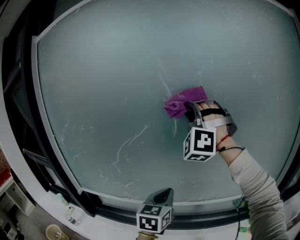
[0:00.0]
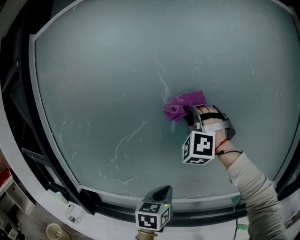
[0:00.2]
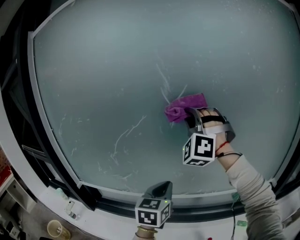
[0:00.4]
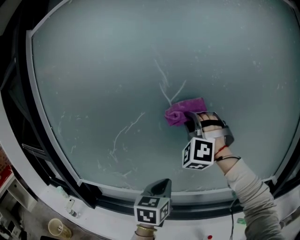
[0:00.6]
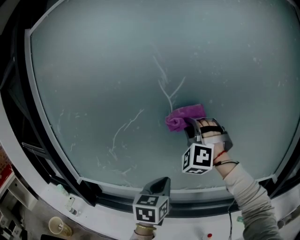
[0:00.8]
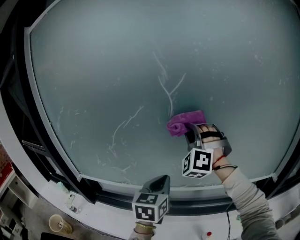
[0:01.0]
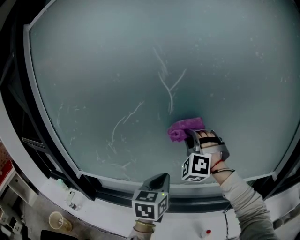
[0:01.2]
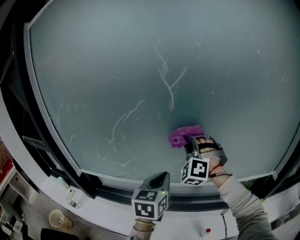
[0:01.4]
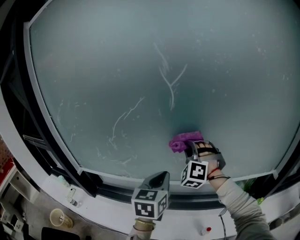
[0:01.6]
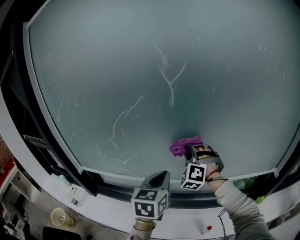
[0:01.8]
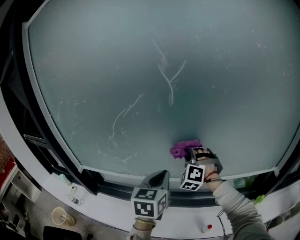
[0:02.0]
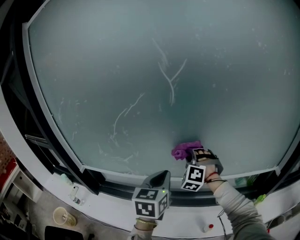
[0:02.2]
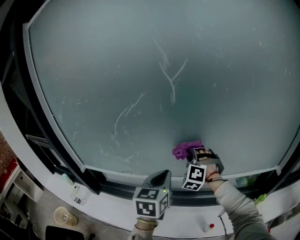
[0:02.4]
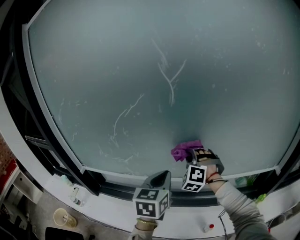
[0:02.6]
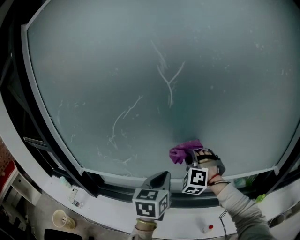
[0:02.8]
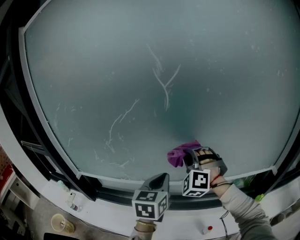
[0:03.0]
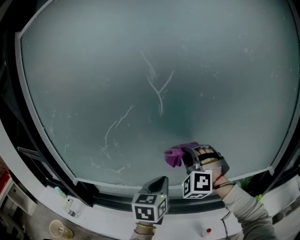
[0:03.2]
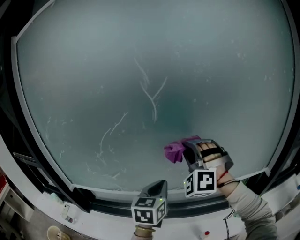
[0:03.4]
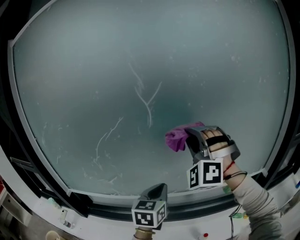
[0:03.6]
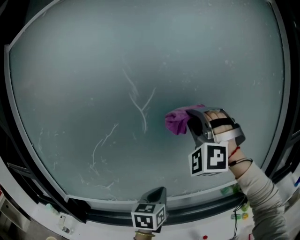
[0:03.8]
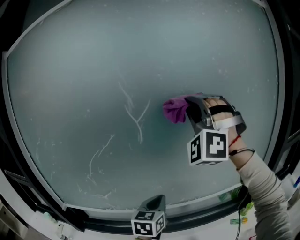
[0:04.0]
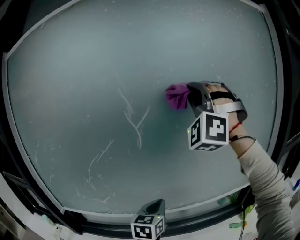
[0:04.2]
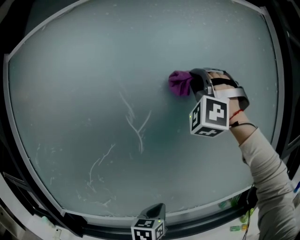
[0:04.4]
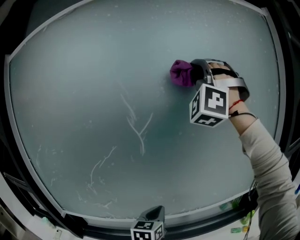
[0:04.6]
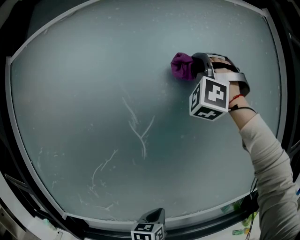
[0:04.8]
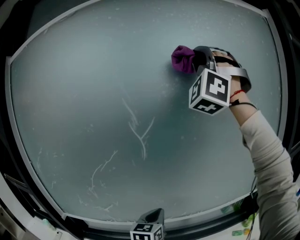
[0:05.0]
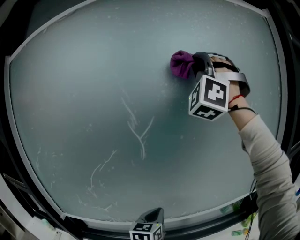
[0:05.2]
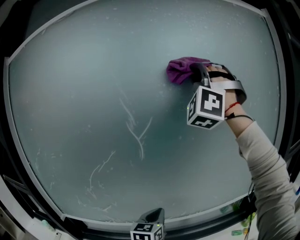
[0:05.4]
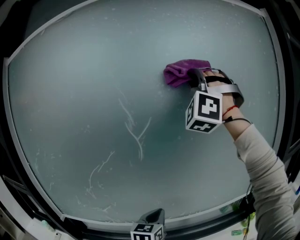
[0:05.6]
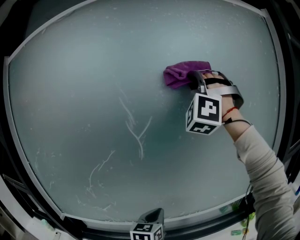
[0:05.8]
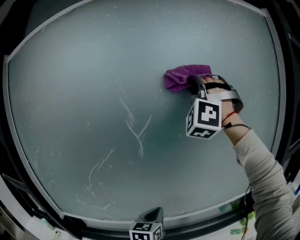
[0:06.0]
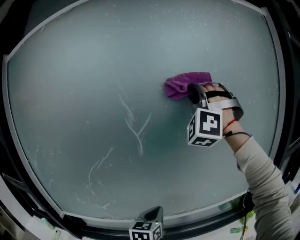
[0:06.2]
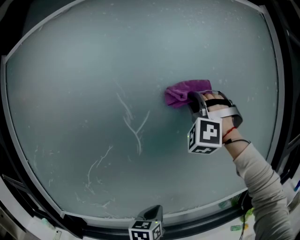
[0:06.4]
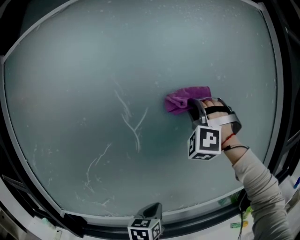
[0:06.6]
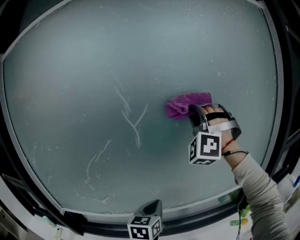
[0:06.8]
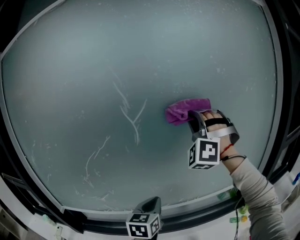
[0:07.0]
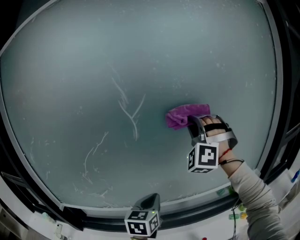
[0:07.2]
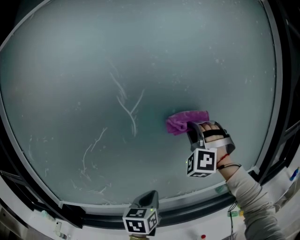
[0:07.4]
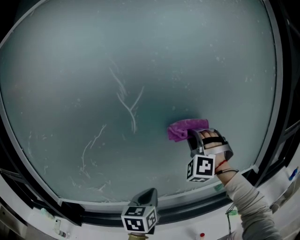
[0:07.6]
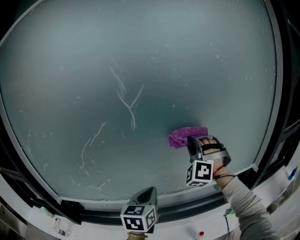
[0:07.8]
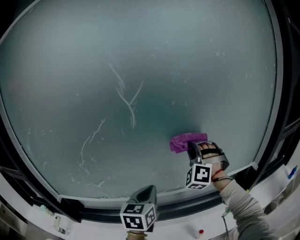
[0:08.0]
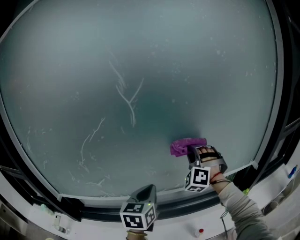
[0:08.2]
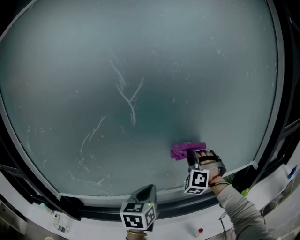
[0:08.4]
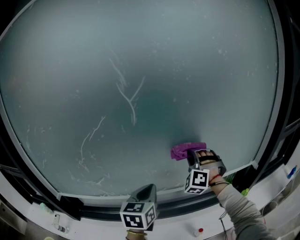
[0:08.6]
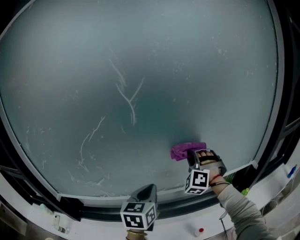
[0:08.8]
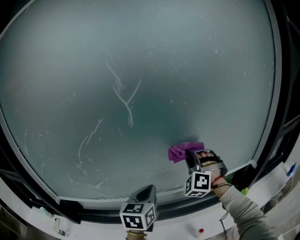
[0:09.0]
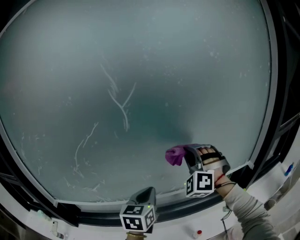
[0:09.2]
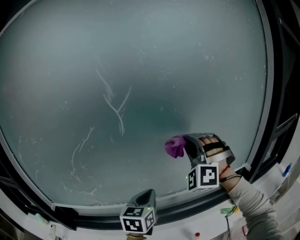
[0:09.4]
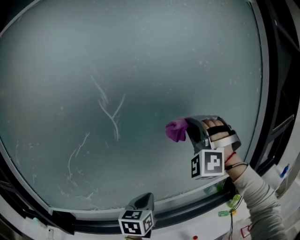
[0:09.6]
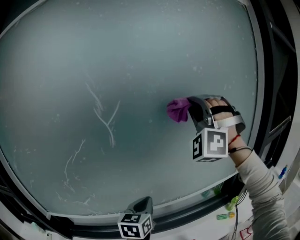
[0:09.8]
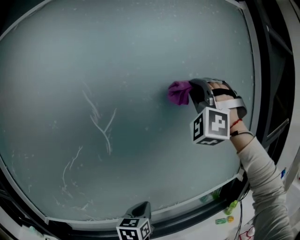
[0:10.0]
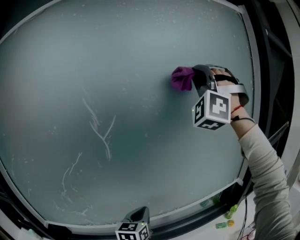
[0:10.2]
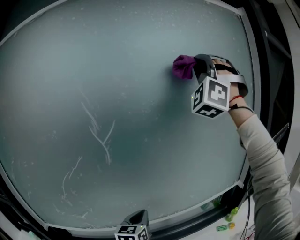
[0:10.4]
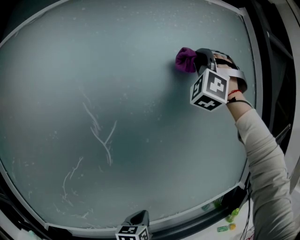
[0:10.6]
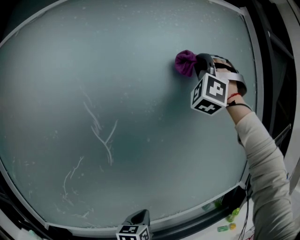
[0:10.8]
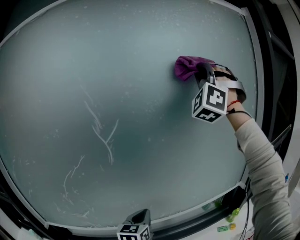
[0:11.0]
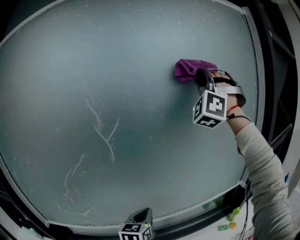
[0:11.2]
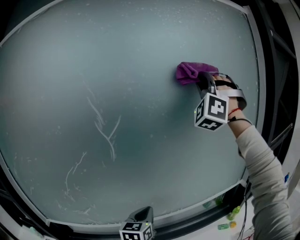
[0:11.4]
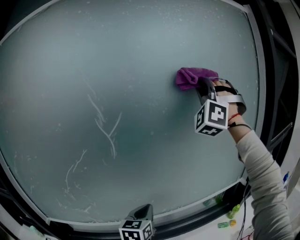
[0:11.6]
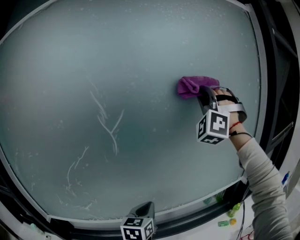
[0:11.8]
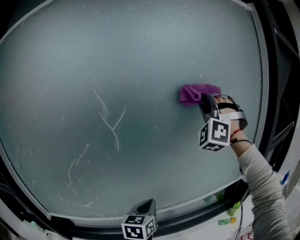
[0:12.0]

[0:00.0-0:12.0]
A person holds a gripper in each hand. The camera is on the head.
0:00.0 to 0:01.6: The right gripper moves downward, some 30 cm, and changes its angle by some 30 degrees.
0:01.6 to 0:03.0: The right gripper travels downward and back again, about 10 cm each way.
0:03.0 to 0:04.4: The left gripper shifts about 5 cm to the right, while the right gripper moves upward, roughly 40 cm, and tips its fingers upward by approximately 40 degrees.
0:04.4 to 0:06.0: The right gripper goes upward and returns, about 10 cm each way.
0:06.0 to 0:07.6: The right gripper is displaced downward by roughly 30 cm, and rotates about 20 degrees.
0:07.6 to 0:09.0: The right gripper is displaced downward by some 10 cm.
0:09.0 to 0:10.4: The left gripper shifts by about 5 cm, while the right gripper travels upward by some 50 cm, and points its fingers approximately 40 degrees further upward.
0:10.4 to 0:12.0: The right gripper goes approximately 15 cm downward.

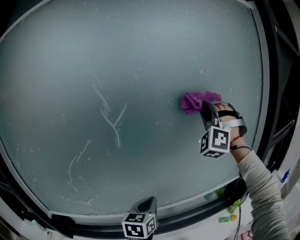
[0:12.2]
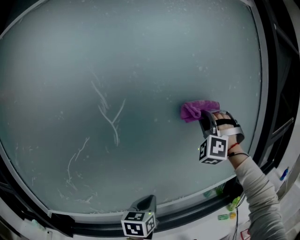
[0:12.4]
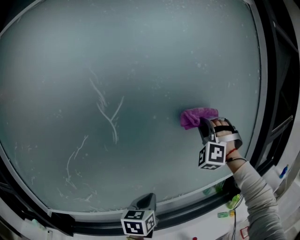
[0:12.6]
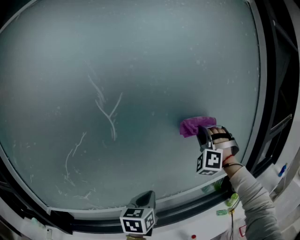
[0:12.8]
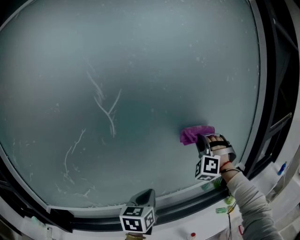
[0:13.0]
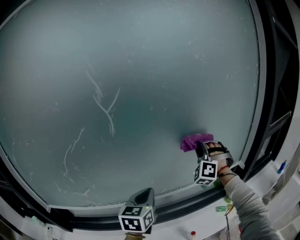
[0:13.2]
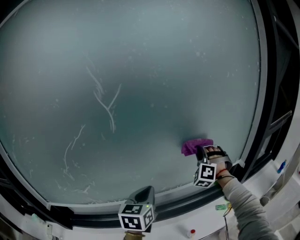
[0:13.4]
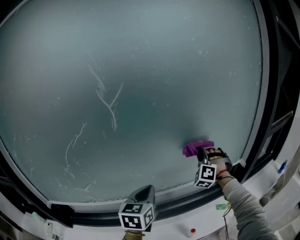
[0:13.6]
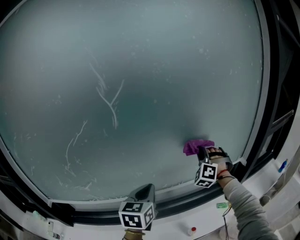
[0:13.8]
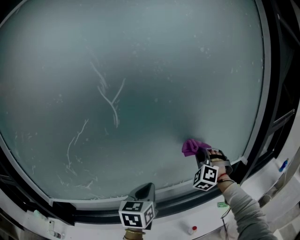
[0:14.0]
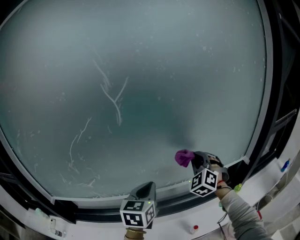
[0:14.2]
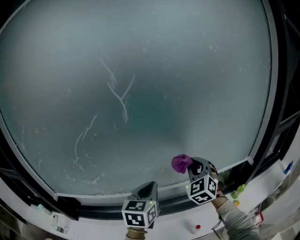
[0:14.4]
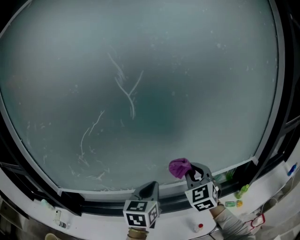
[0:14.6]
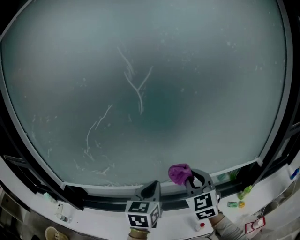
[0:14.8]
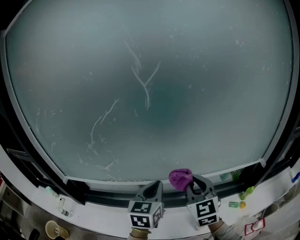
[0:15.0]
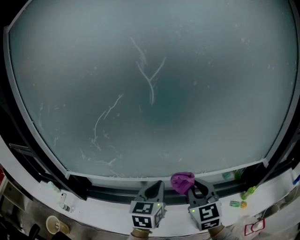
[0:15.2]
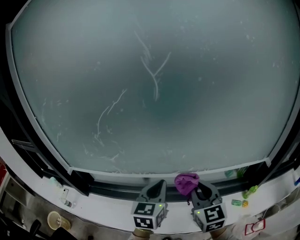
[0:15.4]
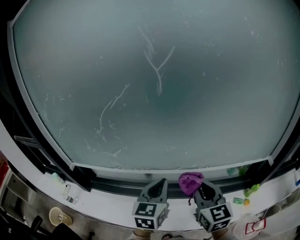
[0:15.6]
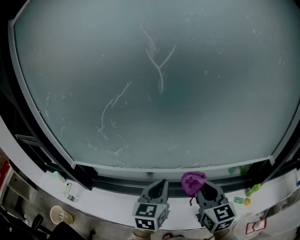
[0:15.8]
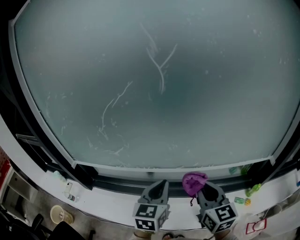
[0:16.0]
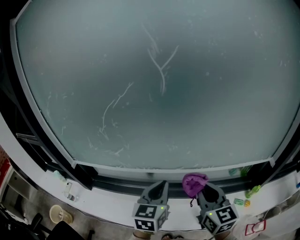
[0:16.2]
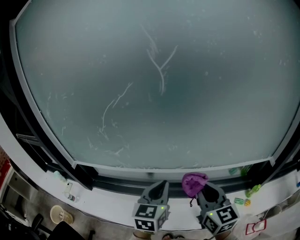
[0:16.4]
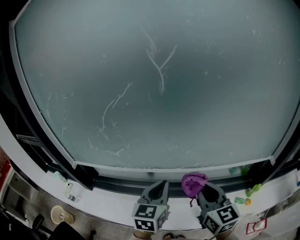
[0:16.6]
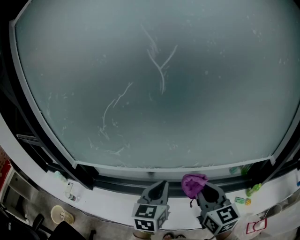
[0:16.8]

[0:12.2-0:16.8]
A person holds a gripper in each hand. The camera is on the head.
0:12.2 to 0:13.8: The right gripper is displaced downward by roughly 30 cm, and turns by approximately 30 degrees.
0:13.8 to 0:15.2: The left gripper is displaced to the left and backward by some 10 cm. The right gripper is displaced backward and to the left by approximately 25 cm, and twists about 60 degrees clockwise, seen from behind.
0:15.2 to 0:16.8: The right gripper turns by roughly 20 degrees.

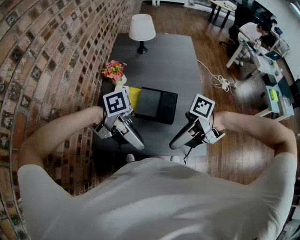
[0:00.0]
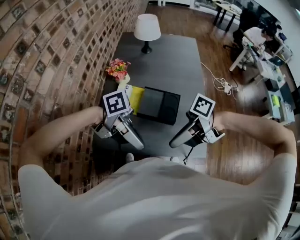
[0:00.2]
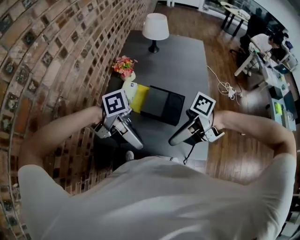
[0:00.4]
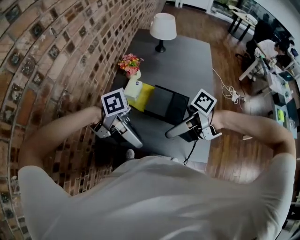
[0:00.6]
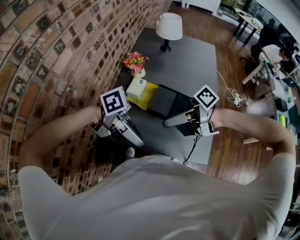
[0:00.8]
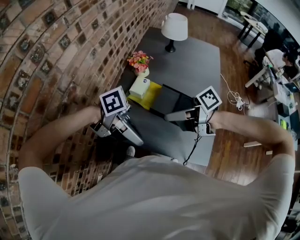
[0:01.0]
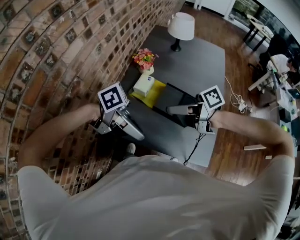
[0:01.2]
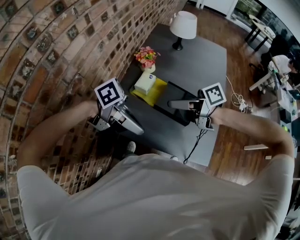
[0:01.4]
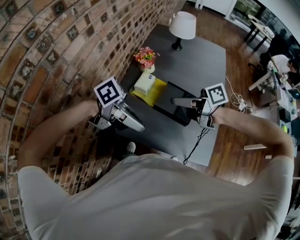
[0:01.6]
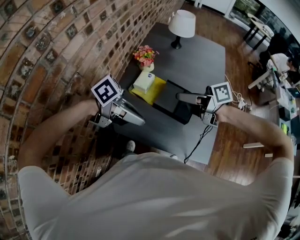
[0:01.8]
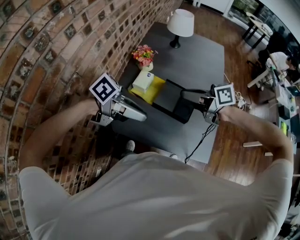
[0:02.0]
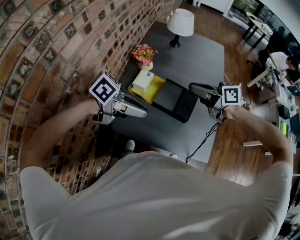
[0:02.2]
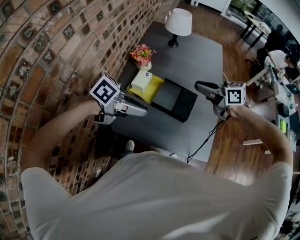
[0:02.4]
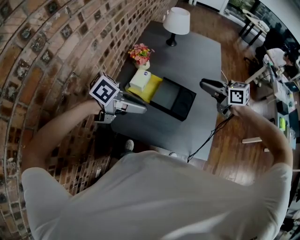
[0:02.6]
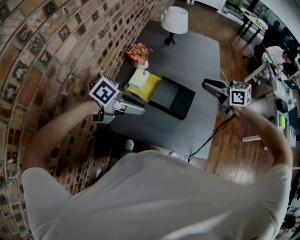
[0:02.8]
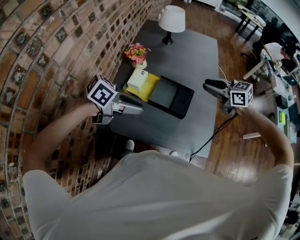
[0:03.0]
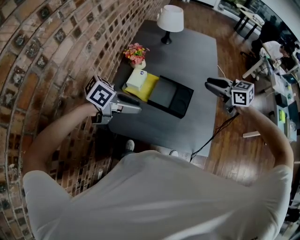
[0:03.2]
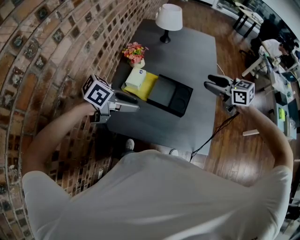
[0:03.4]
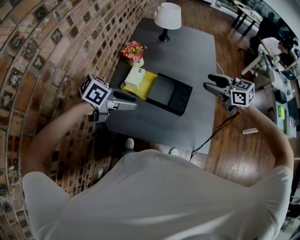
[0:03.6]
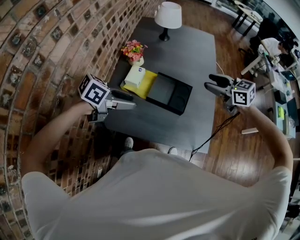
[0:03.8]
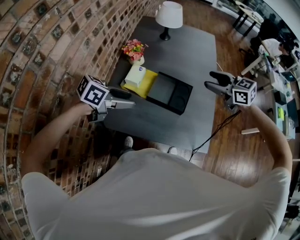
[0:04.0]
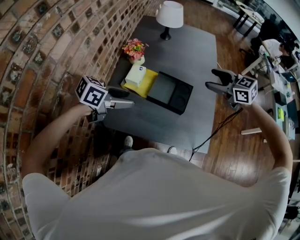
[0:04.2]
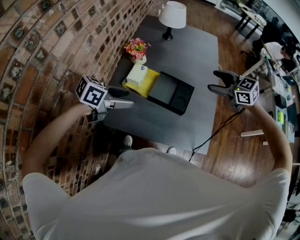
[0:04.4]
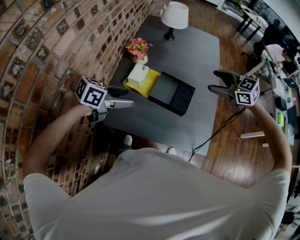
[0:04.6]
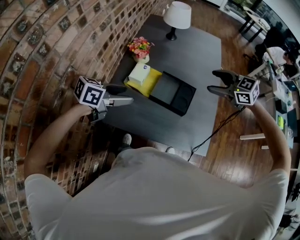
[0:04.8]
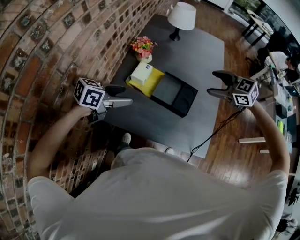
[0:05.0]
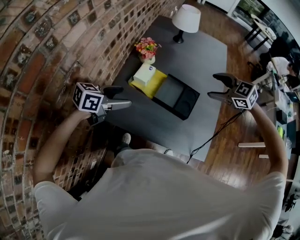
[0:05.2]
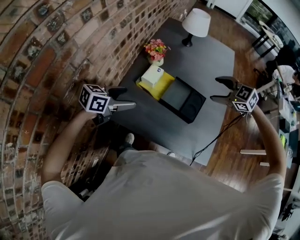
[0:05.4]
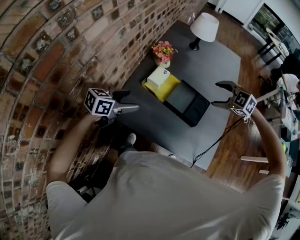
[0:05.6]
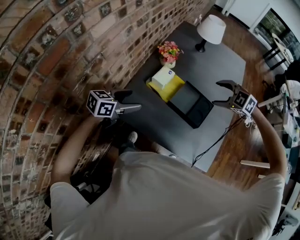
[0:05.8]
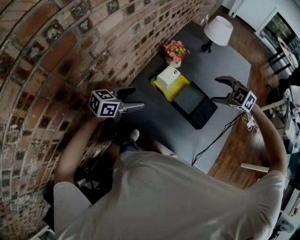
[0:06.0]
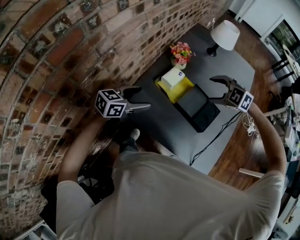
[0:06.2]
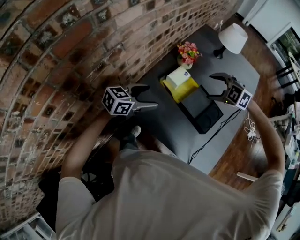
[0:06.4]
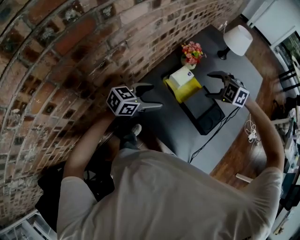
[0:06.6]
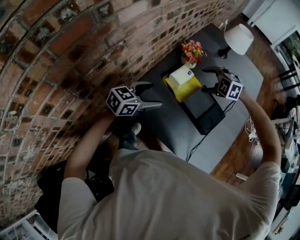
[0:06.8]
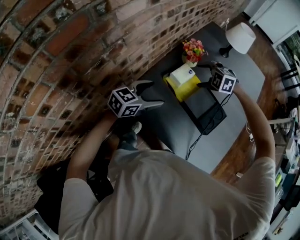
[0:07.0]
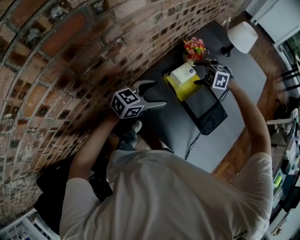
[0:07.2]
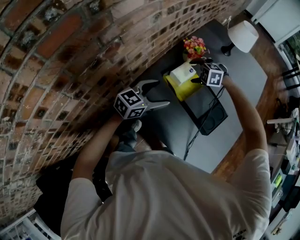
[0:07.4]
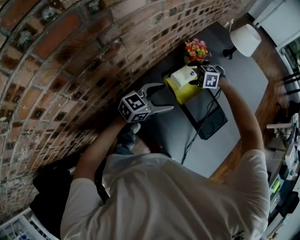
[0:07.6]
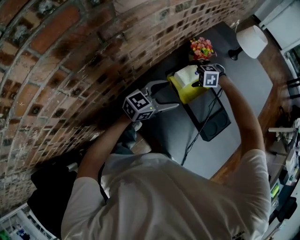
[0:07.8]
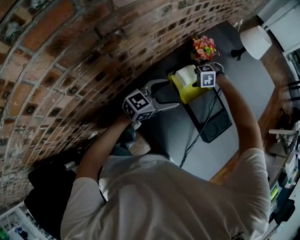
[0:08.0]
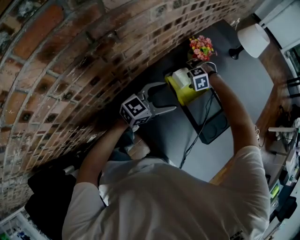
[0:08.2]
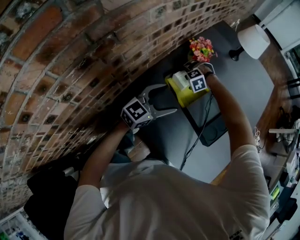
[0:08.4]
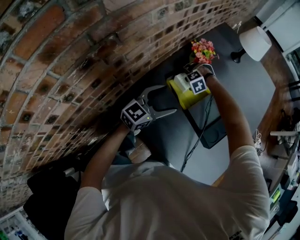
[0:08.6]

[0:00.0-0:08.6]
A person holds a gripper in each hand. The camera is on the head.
0:00.0 to 0:01.4: The right gripper travels backward and to the right by roughly 15 cm, and swivels roughly 30 degrees. Meanwhile the left gripper is displaced to the right by some 5 cm, and turns by approximately 30 degrees.
0:01.4 to 0:02.8: The right gripper ends up about 20 cm from where it was, and swivels approximately 50 degrees. The left gripper shifts by about 10 cm, and swivels approximately 30 degrees.
0:02.8 to 0:04.4: The right gripper turns by approximately 20 degrees, and opens its fingers. Meanwhile the left gripper changes place by some 5 cm, and opens.
0:04.4 to 0:05.8: The right gripper moves about 10 cm, and turns by roughly 40 degrees; the left gripper moves approximately 10 cm, and swivels roughly 30 degrees.
0:05.8 to 0:07.2: The right gripper heads to the left, forward and downward, covering roughly 25 cm, and rotates about 30 degrees.
0:07.2 to 0:08.6: The right gripper heads downward, covering about 15 cm, and turns by about 40 degrees. Meanwhile the left gripper moves roughly 5 cm.
